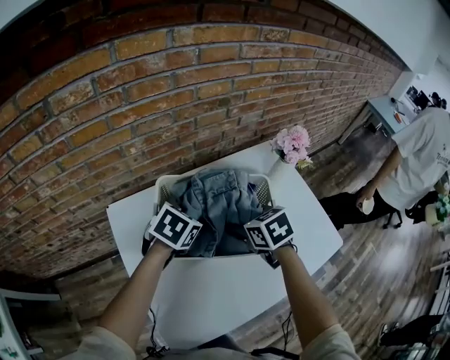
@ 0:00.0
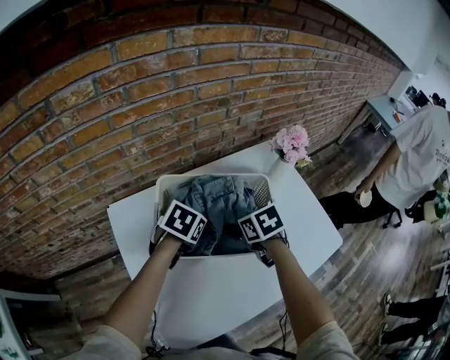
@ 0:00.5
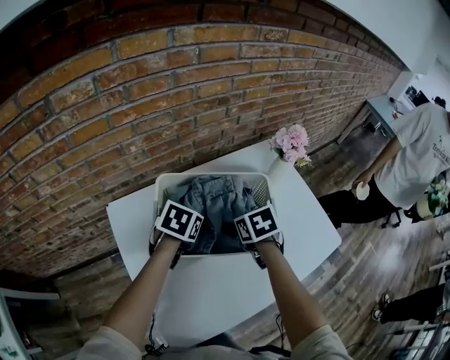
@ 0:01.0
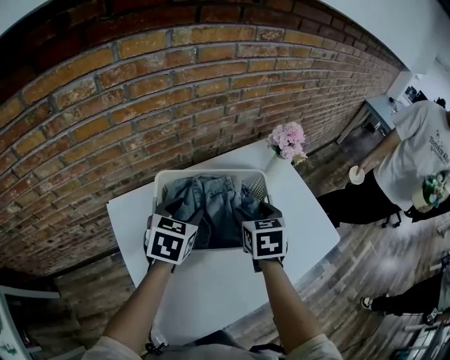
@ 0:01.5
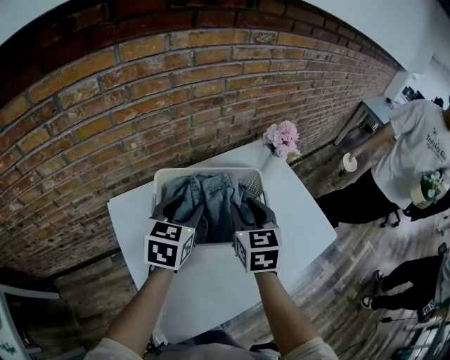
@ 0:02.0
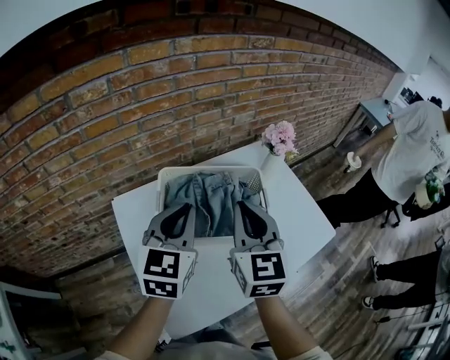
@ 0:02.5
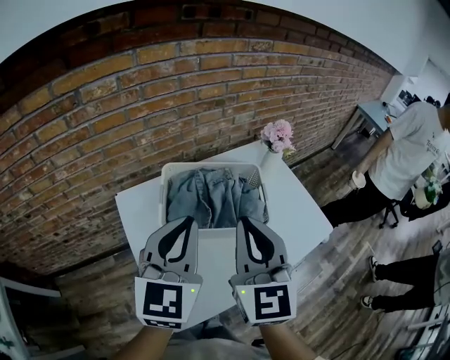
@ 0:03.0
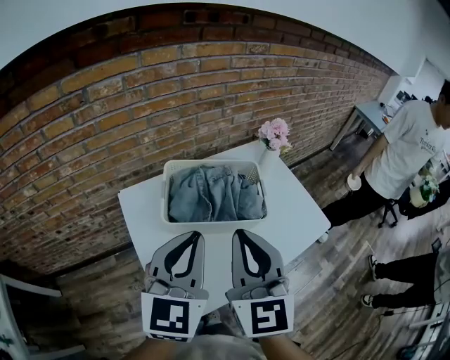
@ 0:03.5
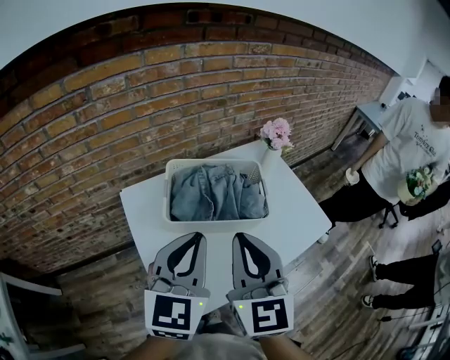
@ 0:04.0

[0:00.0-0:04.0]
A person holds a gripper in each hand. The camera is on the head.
0:00.0 to 0:02.0: The grippers both shift upward by approximately 10 cm. The right gripper rotates about 40 degrees, and closes. Meanwhile the left gripper changes its angle by approximately 30 degrees.
0:02.0 to 0:04.0: Both grippers travel together backward and upward, some 25 cm. The right gripper rotates roughly 20 degrees; the left gripper closes up.

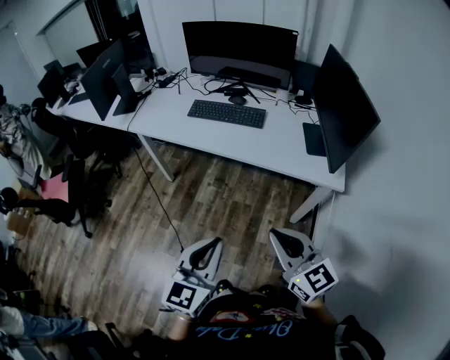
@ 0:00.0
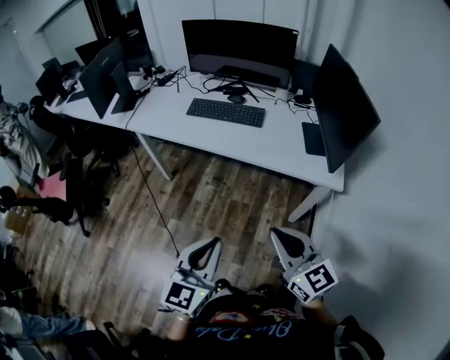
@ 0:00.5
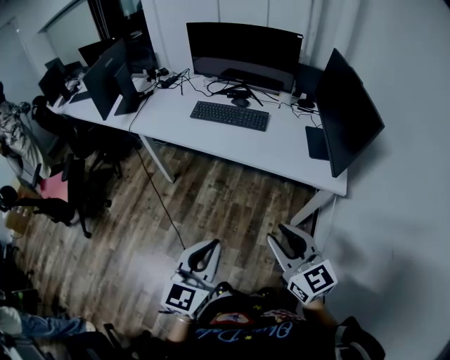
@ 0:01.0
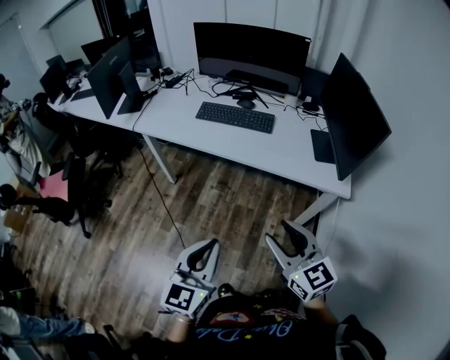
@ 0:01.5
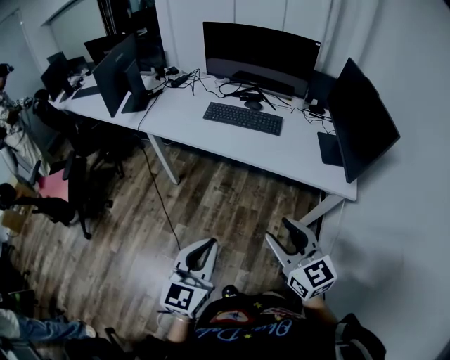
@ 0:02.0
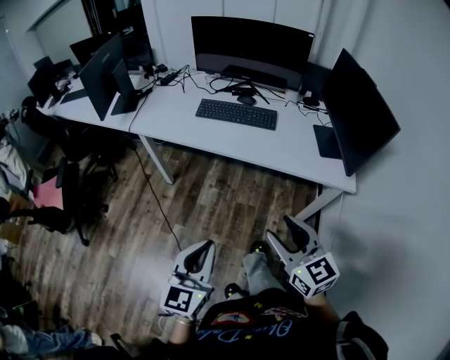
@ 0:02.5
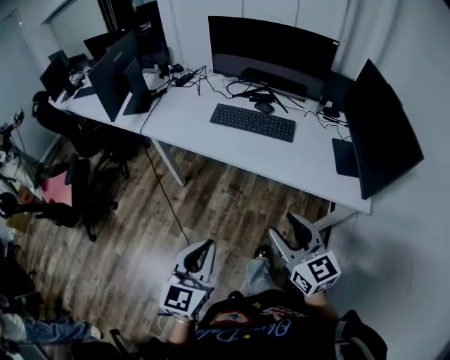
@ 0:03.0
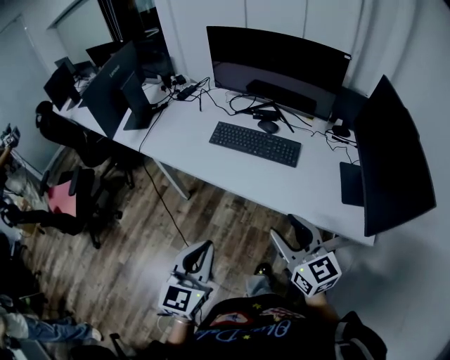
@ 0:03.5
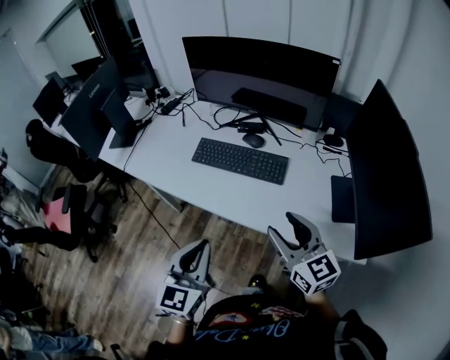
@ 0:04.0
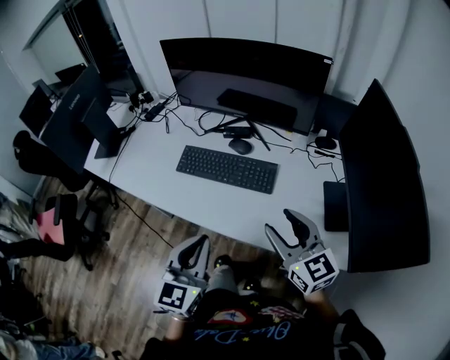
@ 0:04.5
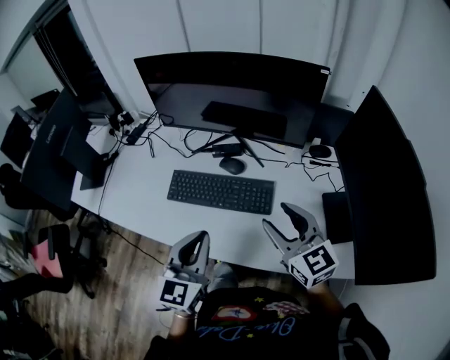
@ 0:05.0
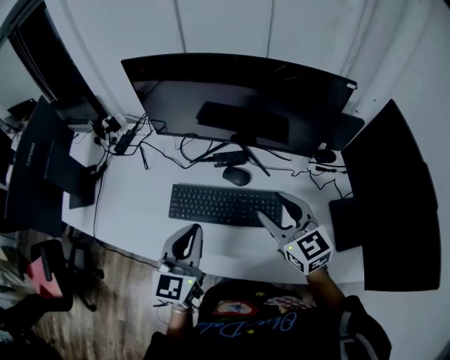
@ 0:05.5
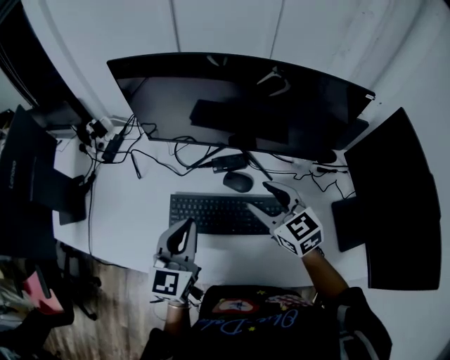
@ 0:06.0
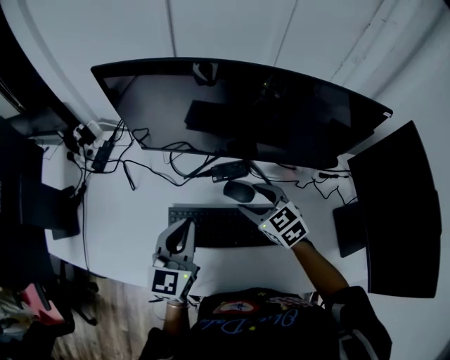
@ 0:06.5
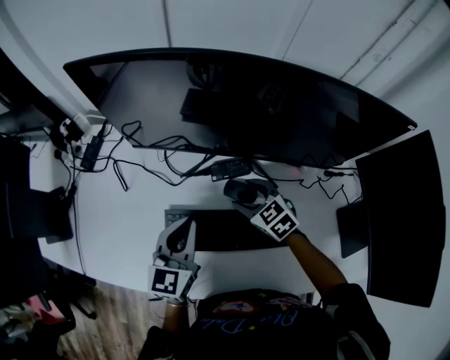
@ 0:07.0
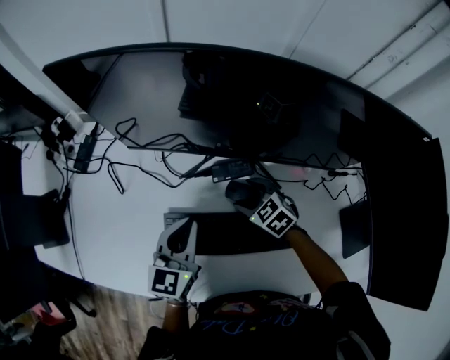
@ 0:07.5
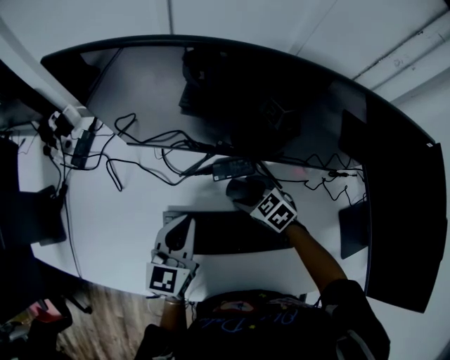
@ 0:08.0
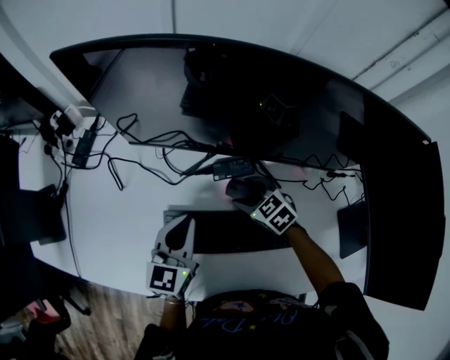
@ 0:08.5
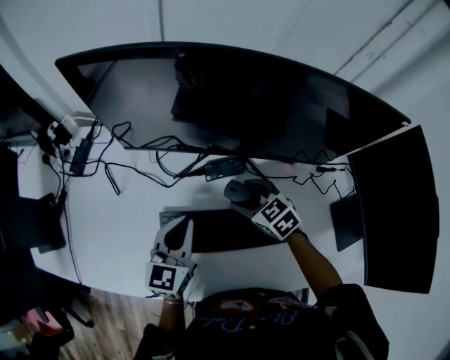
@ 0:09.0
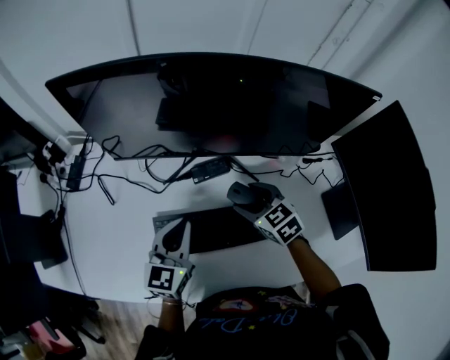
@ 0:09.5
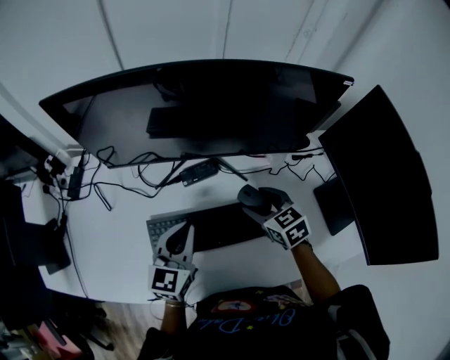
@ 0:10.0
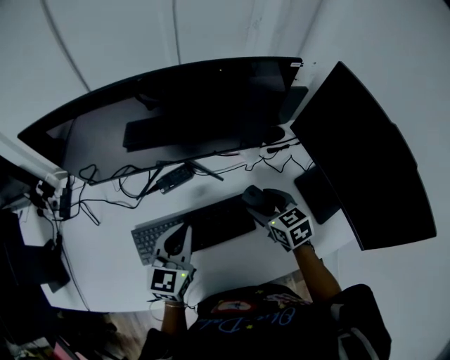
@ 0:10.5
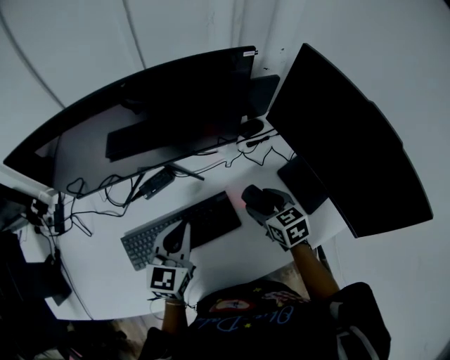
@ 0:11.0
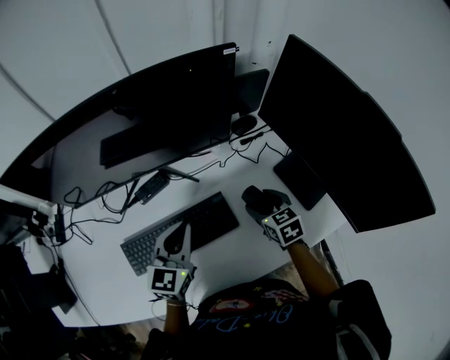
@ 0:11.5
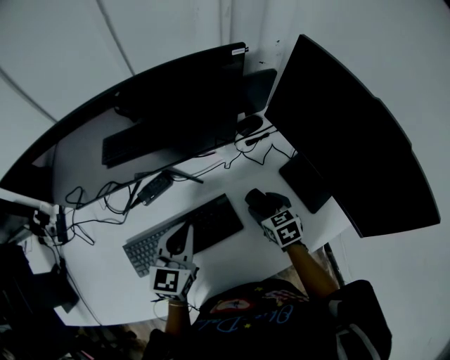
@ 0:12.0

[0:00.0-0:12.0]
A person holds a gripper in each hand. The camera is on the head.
0:00.0 to 0:02.0: The two grippers go about 10 cm to the left. The right gripper opens.
0:02.0 to 0:04.0: The grippers both shift forward by some 30 cm.
0:04.0 to 0:06.0: Both grippers travel together forward, approximately 35 cm. The right gripper rotates approximately 20 degrees.
0:06.0 to 0:08.0: The right gripper is displaced downward and forward by some 25 cm, and changes its angle by about 30 degrees; the left gripper is displaced forward and downward by about 15 cm.
0:08.0 to 0:10.0: The left gripper shifts roughly 10 cm to the right and backward; the right gripper is displaced upward, to the right and backward by some 20 cm, and turns by approximately 30 degrees.
0:10.0 to 0:12.0: The left gripper goes some 15 cm to the right, while the right gripper moves to the right and downward, approximately 20 cm, and turns by about 20 degrees.

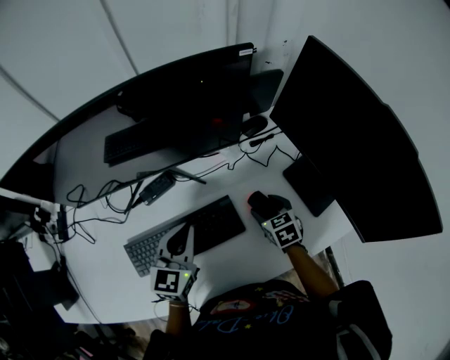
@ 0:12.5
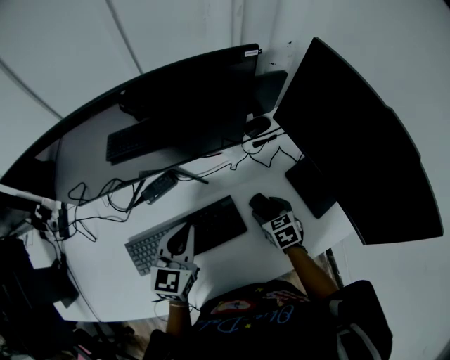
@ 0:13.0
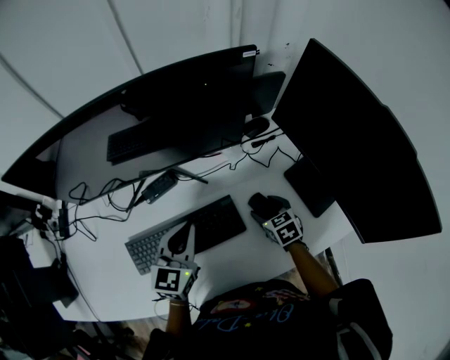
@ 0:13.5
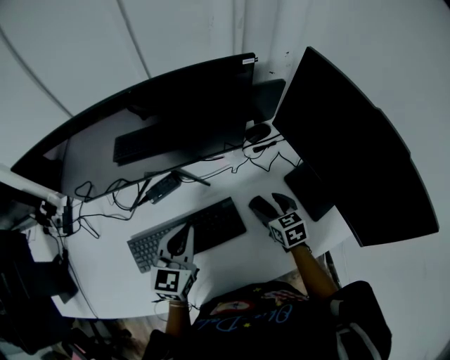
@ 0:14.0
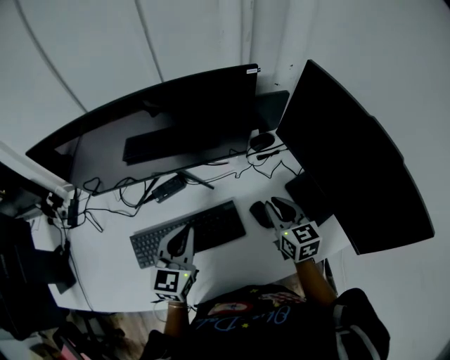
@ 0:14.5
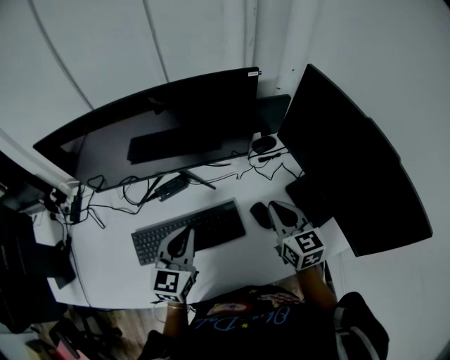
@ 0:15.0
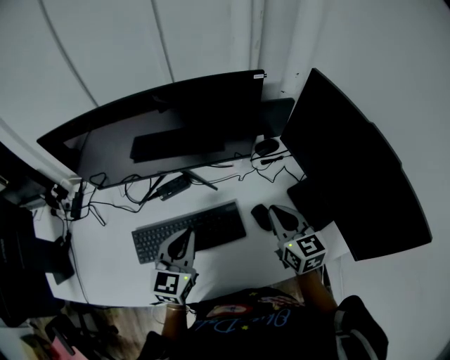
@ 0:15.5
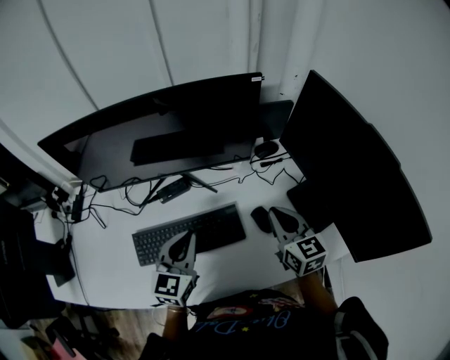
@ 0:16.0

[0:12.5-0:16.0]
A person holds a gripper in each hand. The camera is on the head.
0:12.5 to 0:14.5: The right gripper is displaced upward by some 15 cm, changes its angle by some 30 degrees, and closes up.
0:14.5 to 0:16.0: The right gripper moves roughly 5 cm.

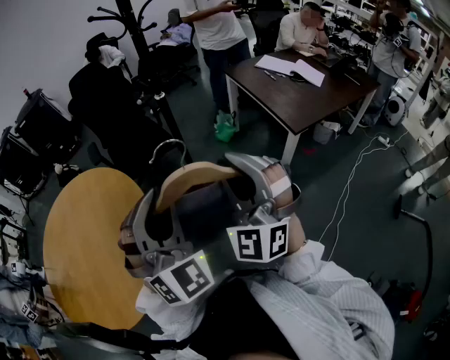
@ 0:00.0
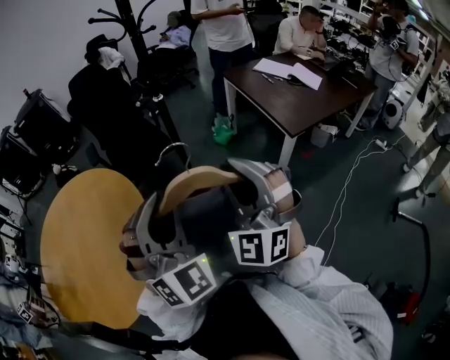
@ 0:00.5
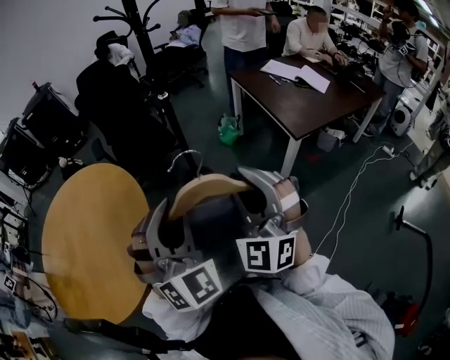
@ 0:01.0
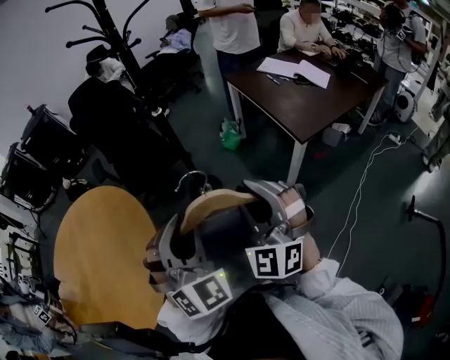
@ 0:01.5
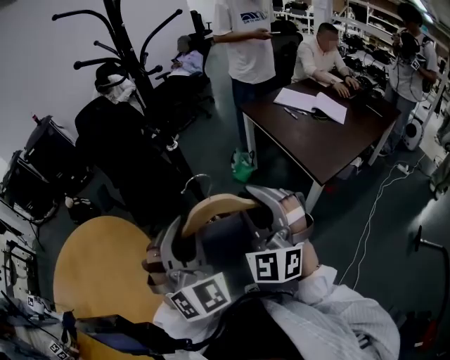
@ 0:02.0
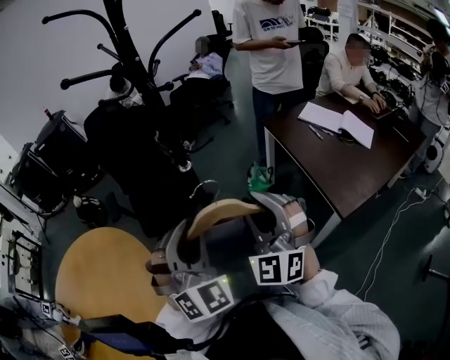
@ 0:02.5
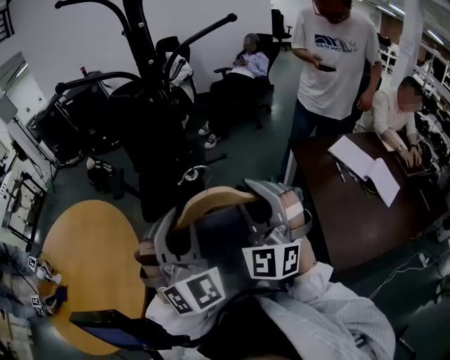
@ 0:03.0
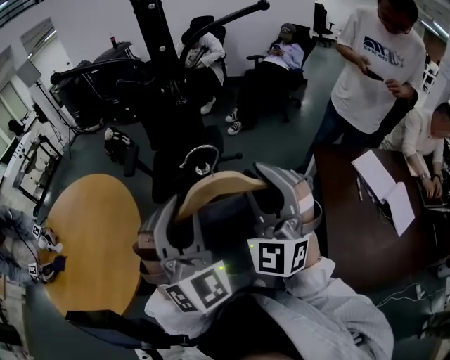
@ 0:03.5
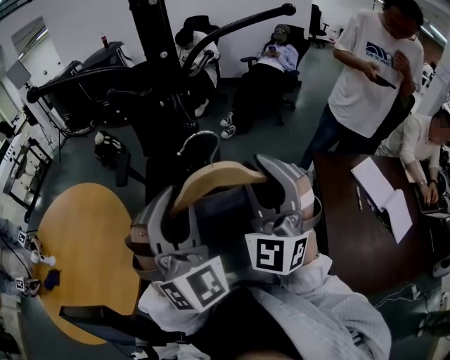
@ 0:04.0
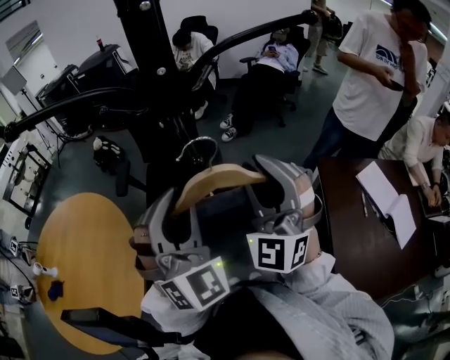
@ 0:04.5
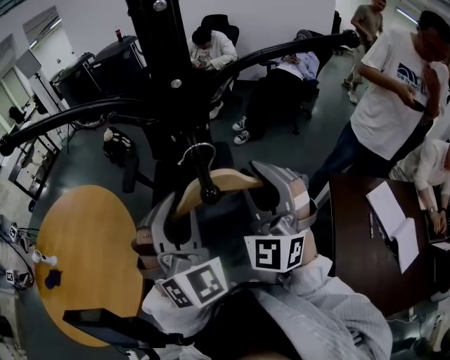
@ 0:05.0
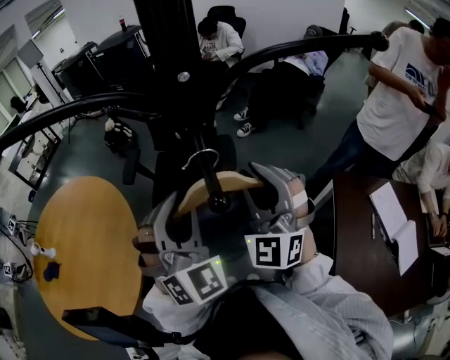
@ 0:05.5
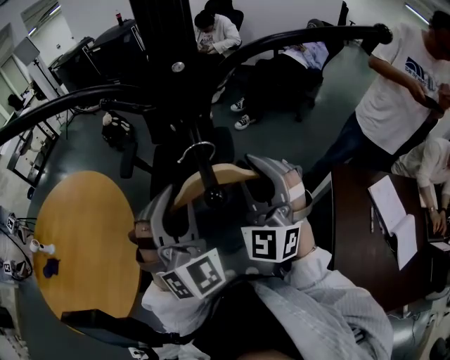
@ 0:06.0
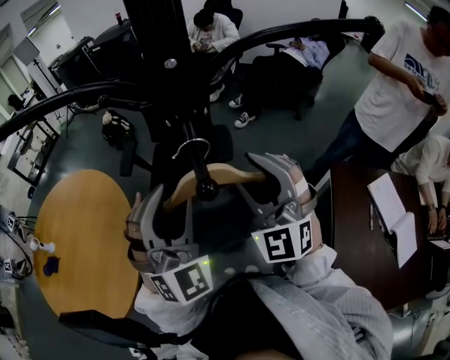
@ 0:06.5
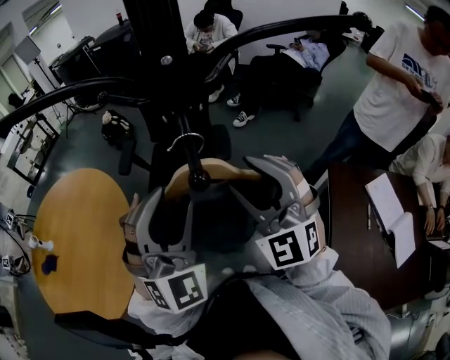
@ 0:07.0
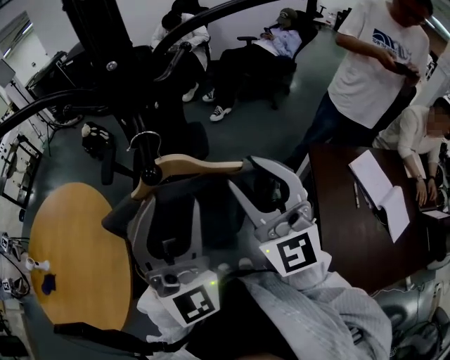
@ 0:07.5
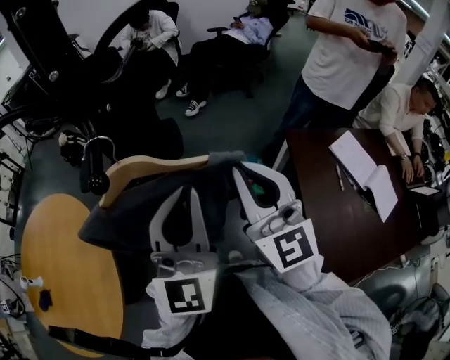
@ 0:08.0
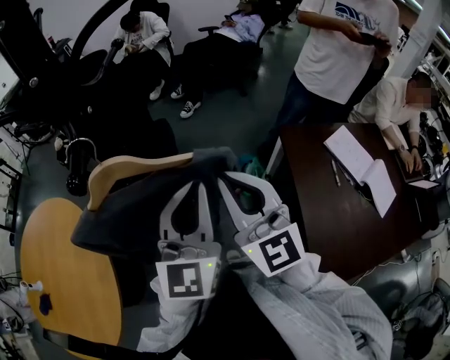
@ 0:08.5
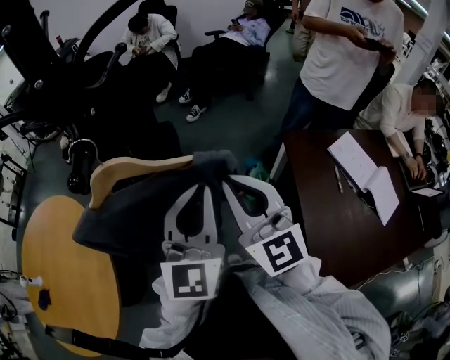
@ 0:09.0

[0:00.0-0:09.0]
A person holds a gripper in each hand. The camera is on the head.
0:00.0 to 0:02.0: The two grippers go approximately 20 cm forward.
0:02.0 to 0:04.5: The two grippers travel together, roughly 40 cm. The right gripper swivels roughly 30 degrees; the left gripper swivels approximately 30 degrees.
0:04.5 to 0:07.0: The left gripper opens up. Meanwhile the right gripper shifts by some 5 cm, rotates roughly 30 degrees, and opens up.
0:07.0 to 0:09.0: The right gripper heads to the right and backward, covering some 15 cm, changes its angle by roughly 40 degrees, and closes up, while the left gripper shifts approximately 20 cm to the right, twists about 50 degrees counterclockwise, seen from behind, and closes its fingers.
